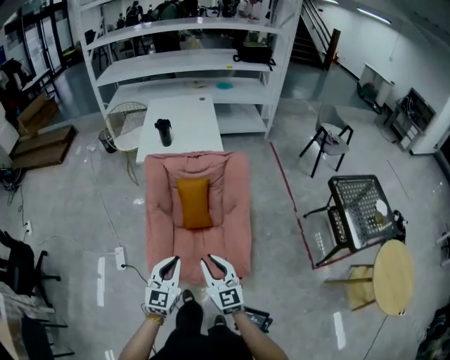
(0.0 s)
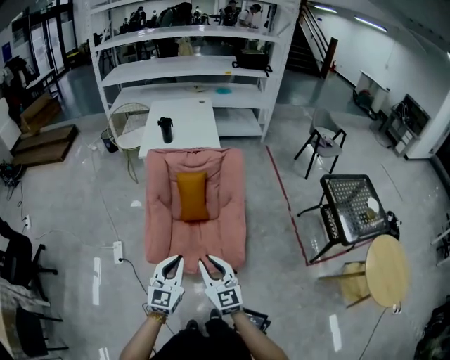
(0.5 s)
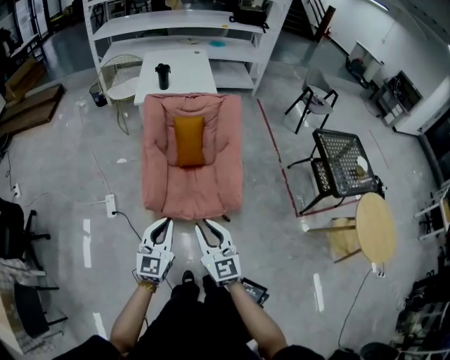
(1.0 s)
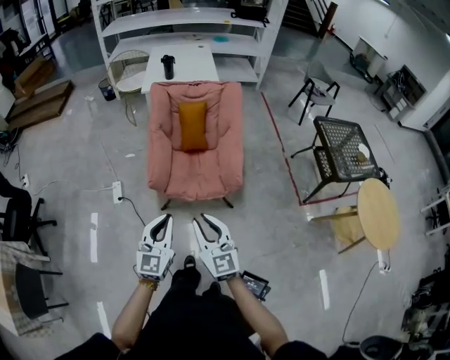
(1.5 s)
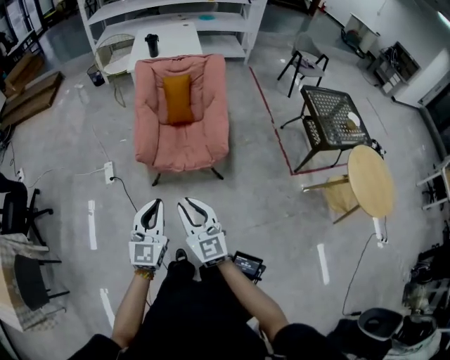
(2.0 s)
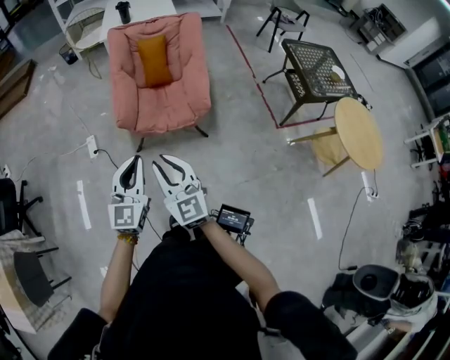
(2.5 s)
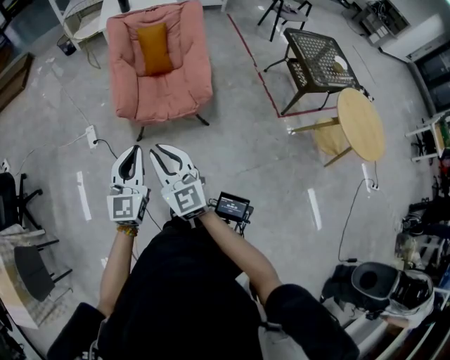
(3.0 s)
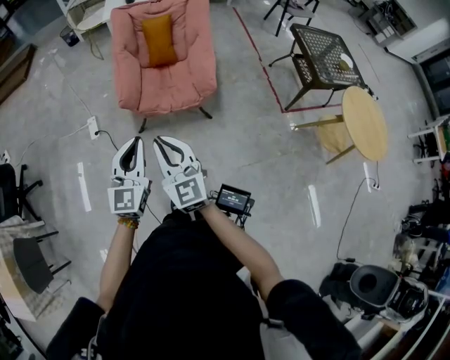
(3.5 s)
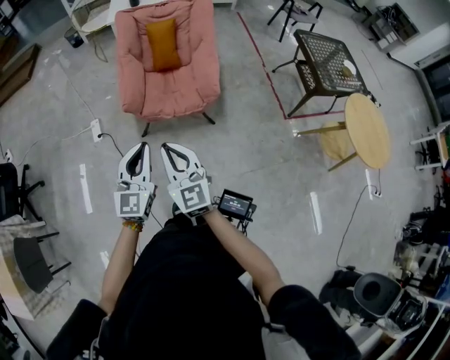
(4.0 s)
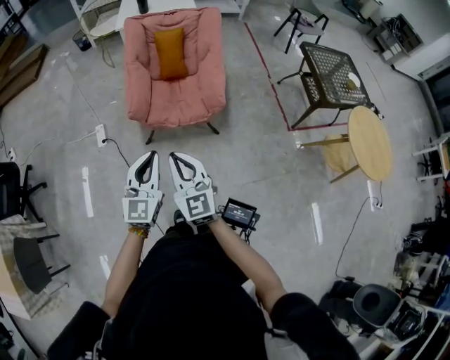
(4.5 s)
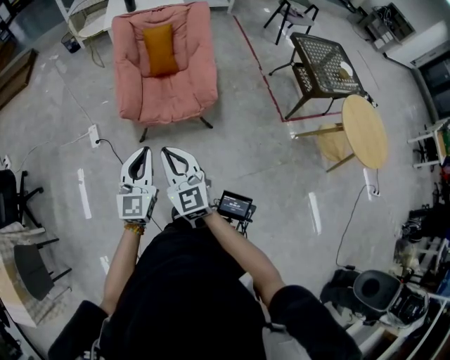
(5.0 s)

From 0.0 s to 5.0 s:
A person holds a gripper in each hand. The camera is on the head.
From 0.0 s to 2.5 s: Both grippers are carried backward, about 40 cm.
From 2.5 s to 5.0 s: The grippers move only a little.

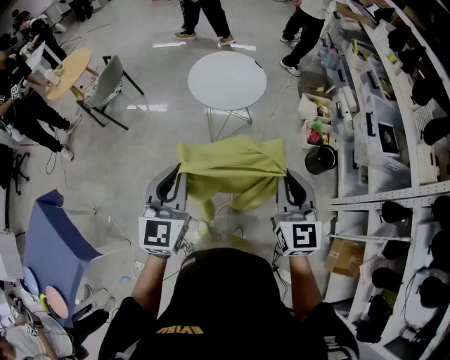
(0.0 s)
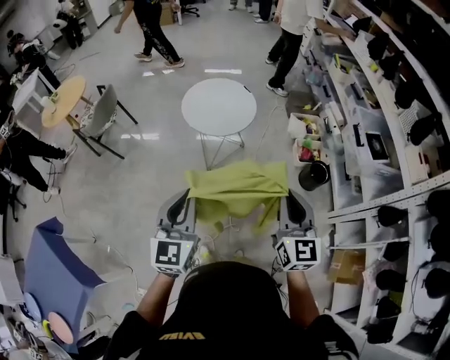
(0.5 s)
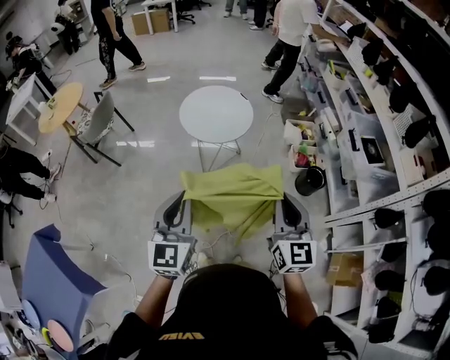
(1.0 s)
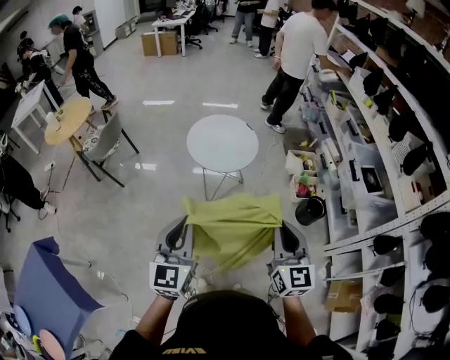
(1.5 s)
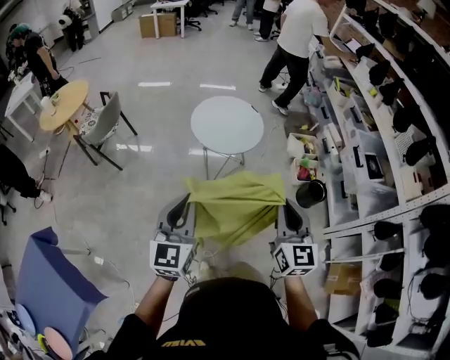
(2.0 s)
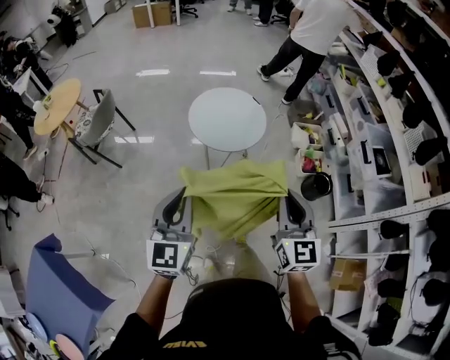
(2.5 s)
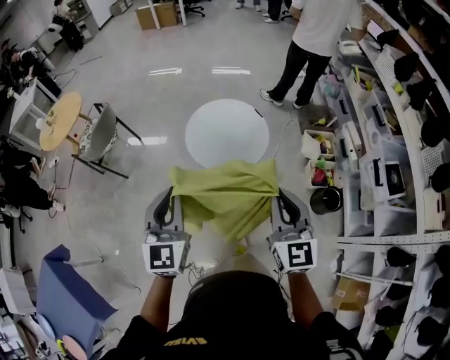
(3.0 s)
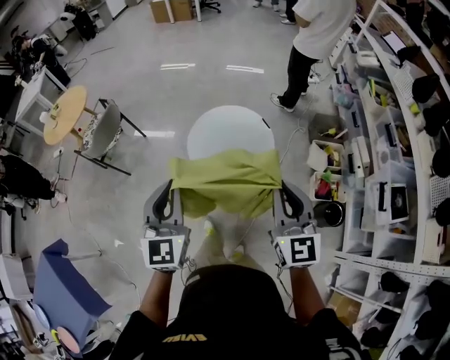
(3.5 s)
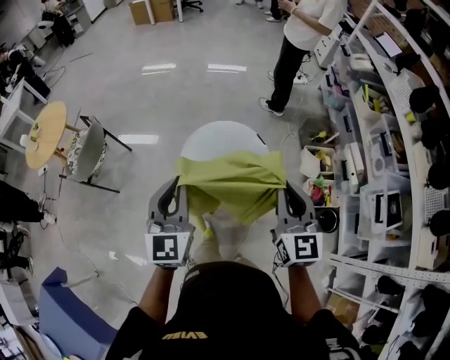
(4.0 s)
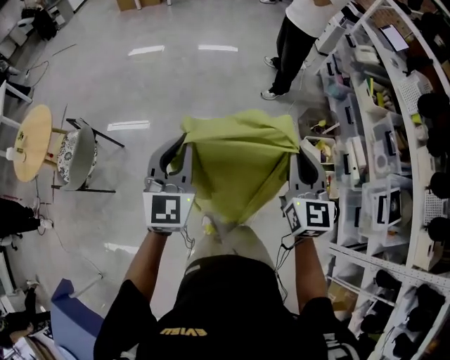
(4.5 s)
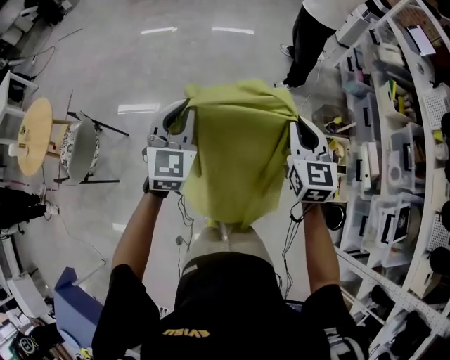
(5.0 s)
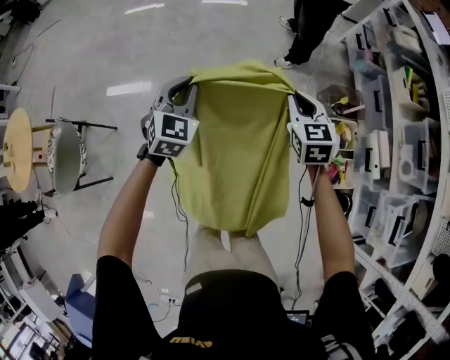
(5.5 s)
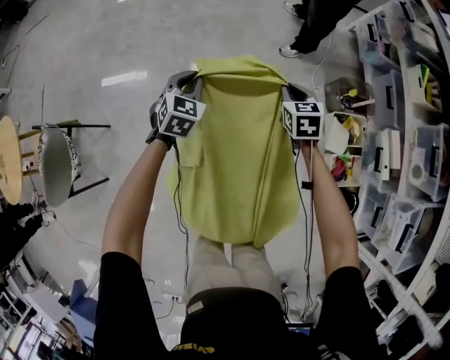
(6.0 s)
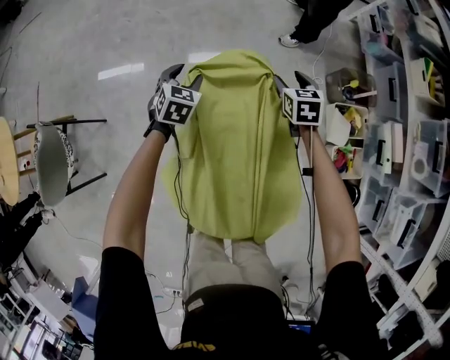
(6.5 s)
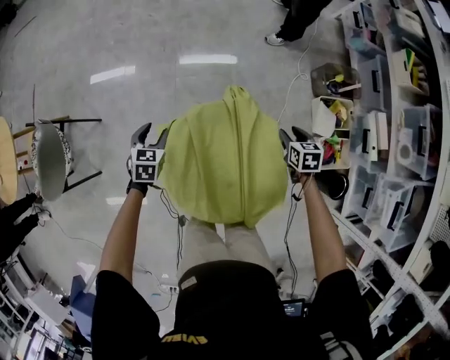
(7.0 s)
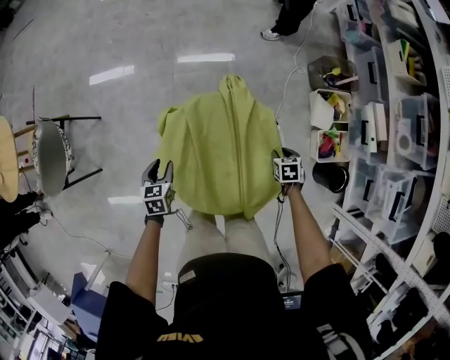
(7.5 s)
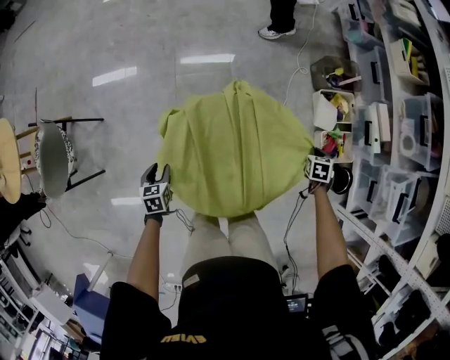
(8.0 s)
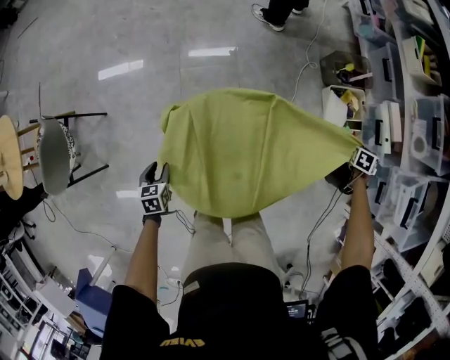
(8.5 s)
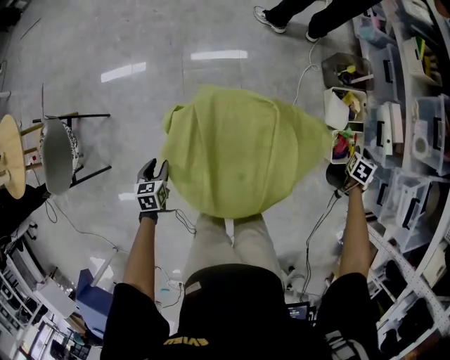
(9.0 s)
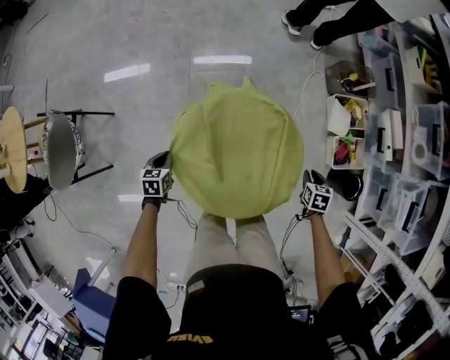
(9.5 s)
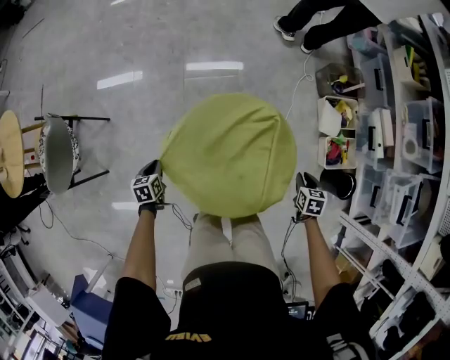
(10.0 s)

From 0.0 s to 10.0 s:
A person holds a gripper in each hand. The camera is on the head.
From 0.0 s to 2.0 s: Both grippers move to the left, some 10 cm.
From 2.0 s to 4.0 s: Both grippers are carried forward, approximately 50 cm.
From 4.0 s to 6.0 s: The two grippers travel together, forward, approximately 60 cm. Both grippers travel together downward, some 40 cm. The right gripper tips its fingers downward by some 40 degrees; the left gripper points its fingers about 30 degrees further downward.
From 6.0 s to 8.0 s: The right gripper shifts about 40 cm backward, to the right and downward, rotates some 30 degrees, and opens, then closes once more. Meanwhile the left gripper heads backward, covering some 35 cm, swivels about 40 degrees, and opens.
From 8.0 s to 10.0 s: The left gripper shifts some 5 cm to the left, and closes up, while the right gripper heads backward, covering roughly 15 cm, and reaches approximately 15 cm to the right, then returns.

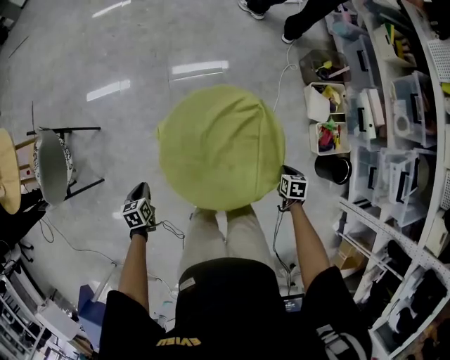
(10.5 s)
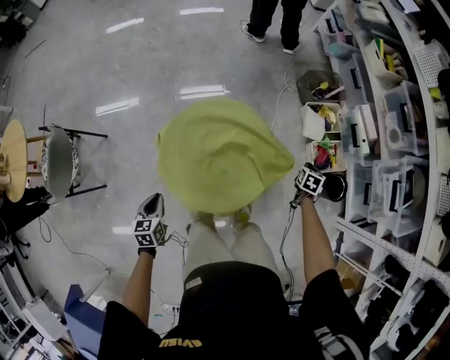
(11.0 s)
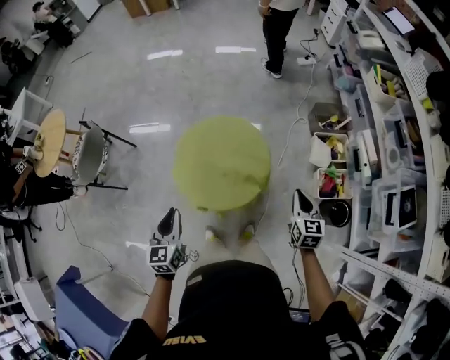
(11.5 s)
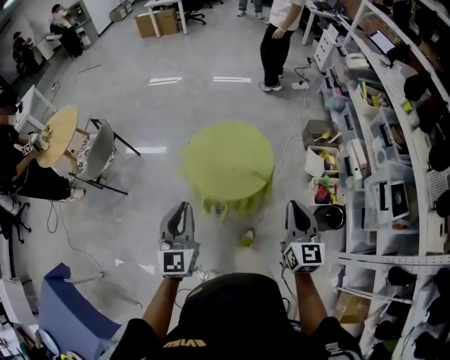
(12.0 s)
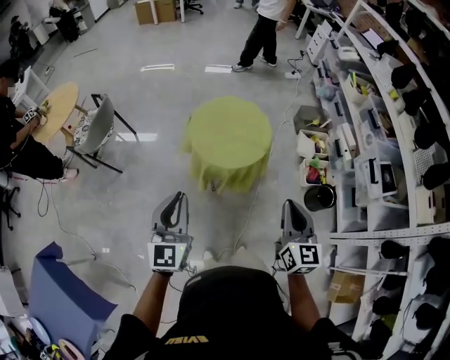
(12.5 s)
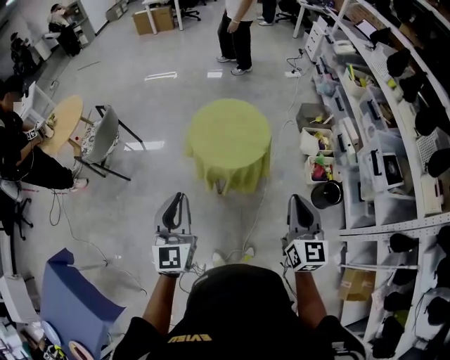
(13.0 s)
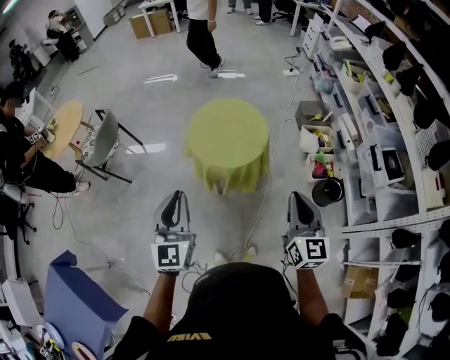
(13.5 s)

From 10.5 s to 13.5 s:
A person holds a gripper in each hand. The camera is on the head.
From 10.5 s to 12.0 s: Both grippers travel together upward, roughly 50 cm. The right gripper angles its fingers upward, by about 60 degrees. The left gripper tips its fingers upward by about 60 degrees.
From 12.0 s to 13.5 s: Both grippers travel together backward, some 20 cm.

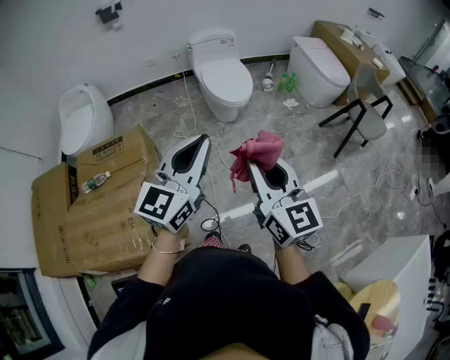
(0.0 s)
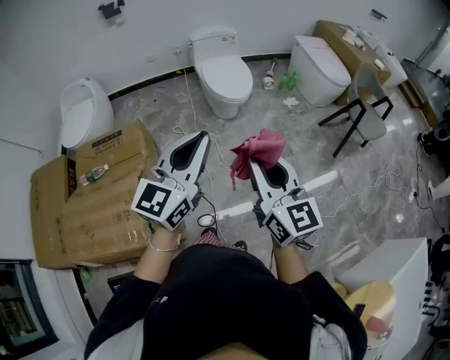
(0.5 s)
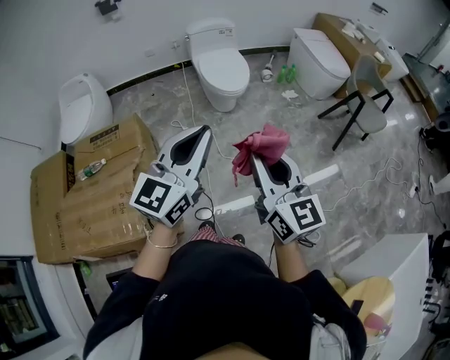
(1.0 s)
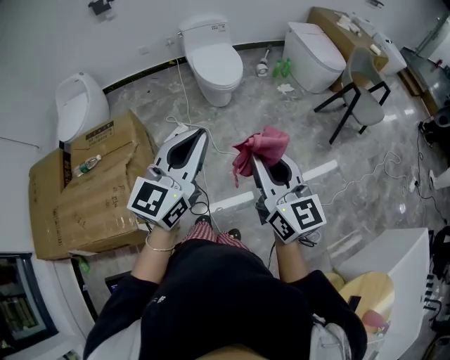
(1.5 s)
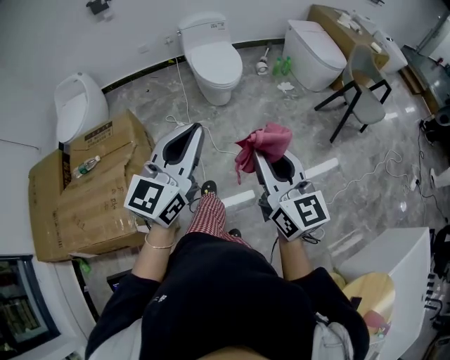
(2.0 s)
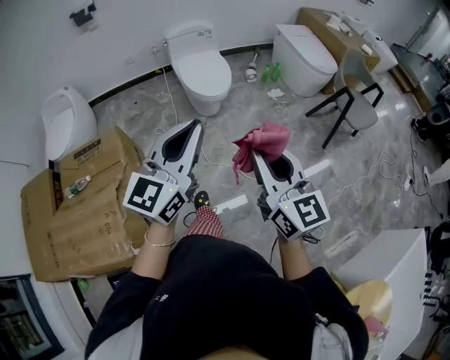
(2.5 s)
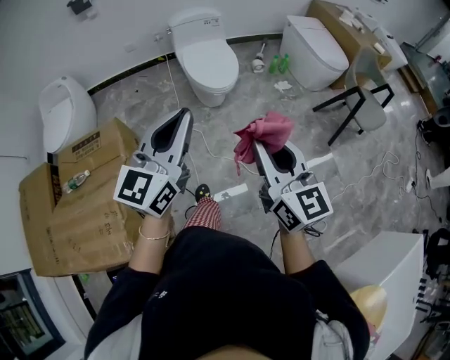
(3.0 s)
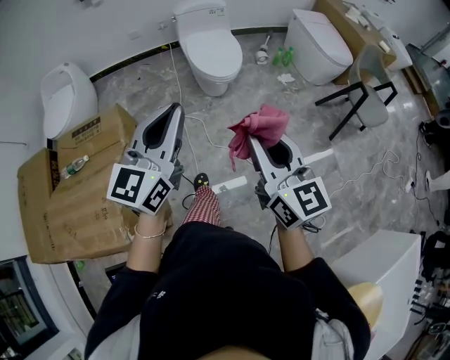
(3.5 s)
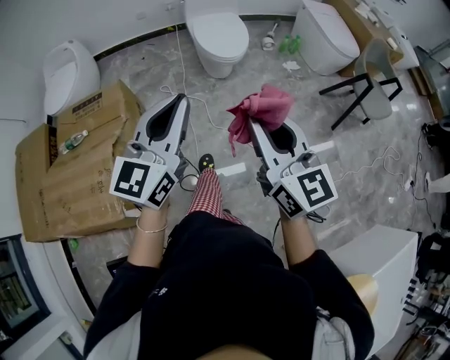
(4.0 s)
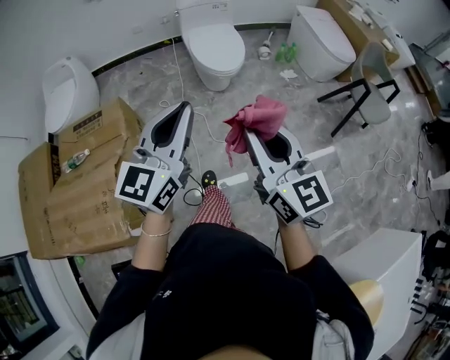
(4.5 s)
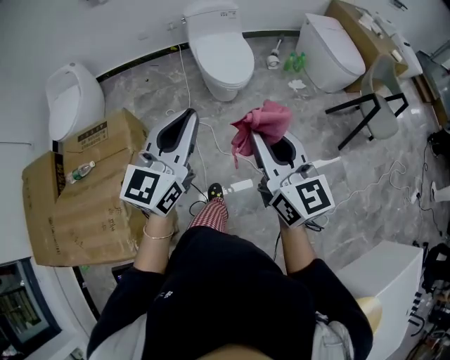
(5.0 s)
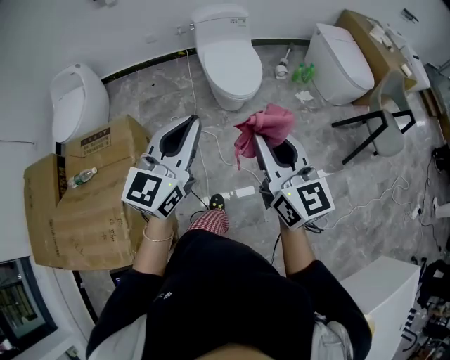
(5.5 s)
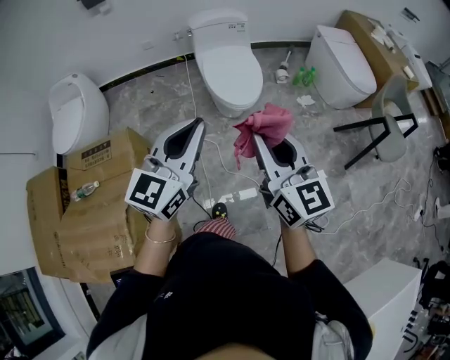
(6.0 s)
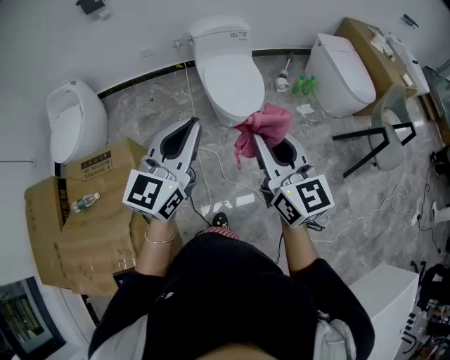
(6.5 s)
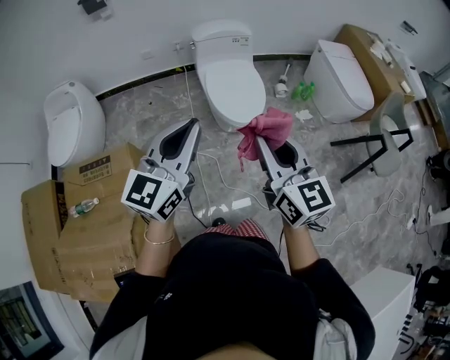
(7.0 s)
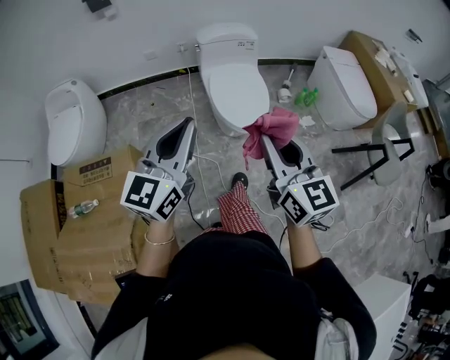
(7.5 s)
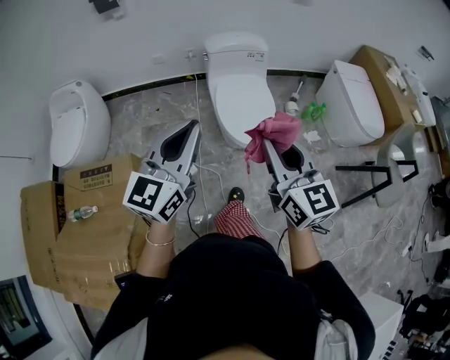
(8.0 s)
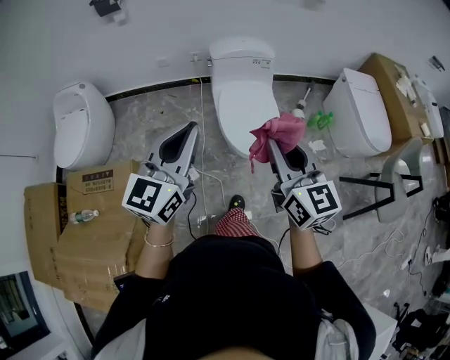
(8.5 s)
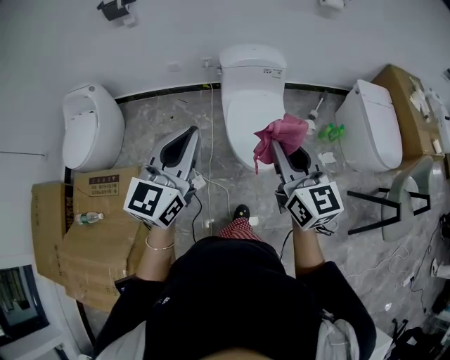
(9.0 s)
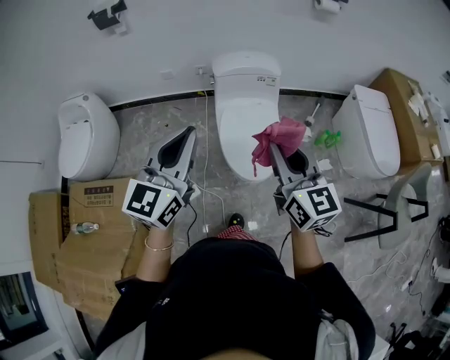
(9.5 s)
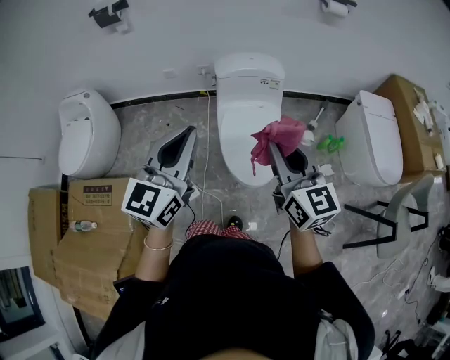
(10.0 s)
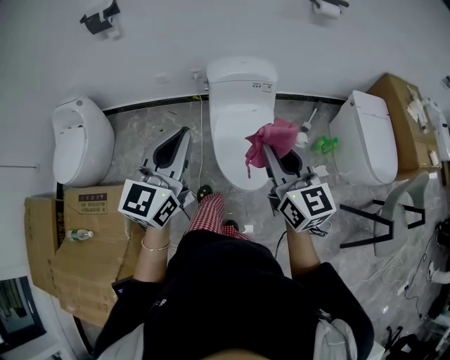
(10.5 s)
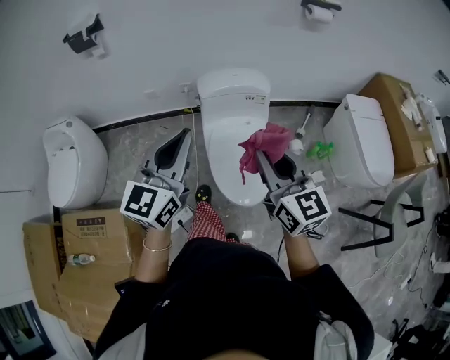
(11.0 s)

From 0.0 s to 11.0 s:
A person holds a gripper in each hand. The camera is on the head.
From 0.0 s to 2.0 s: The two grippers go roughly 10 cm to the right.
From 2.0 s to 3.5 s: Both grippers move forward, approximately 10 cm.
From 3.5 s to 5.5 s: Both grippers move forward, some 10 cm.
From 5.5 s to 7.5 s: The left gripper moves forward and to the left, approximately 20 cm; the right gripper is displaced forward by some 15 cm.
From 7.5 s to 9.0 s: The grippers both shift forward by about 20 cm.
From 9.0 s to 11.0 s: The grippers both shift forward by about 15 cm.
